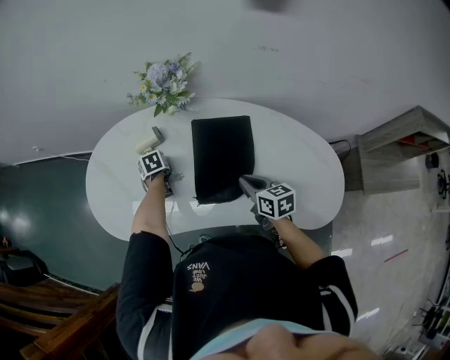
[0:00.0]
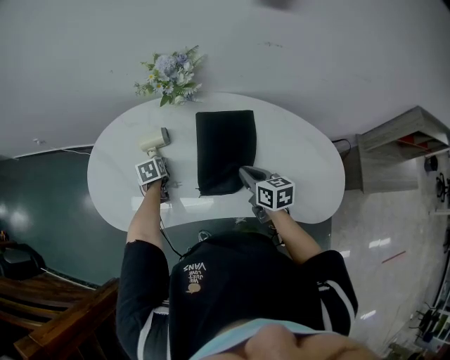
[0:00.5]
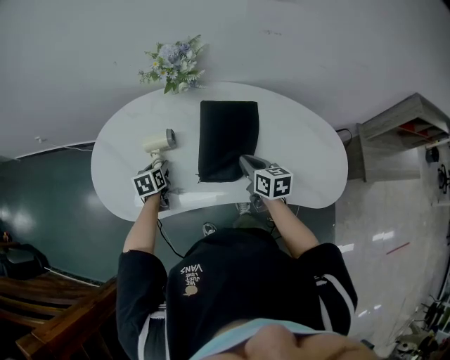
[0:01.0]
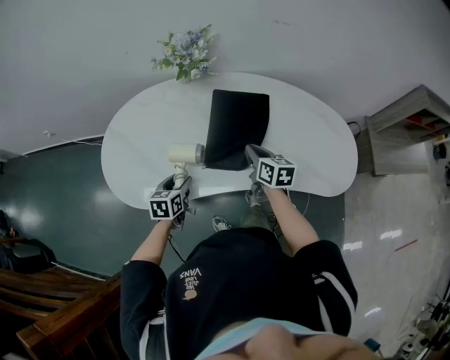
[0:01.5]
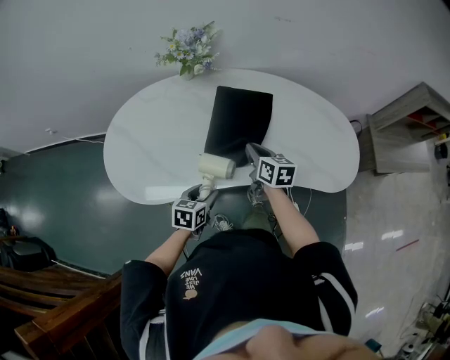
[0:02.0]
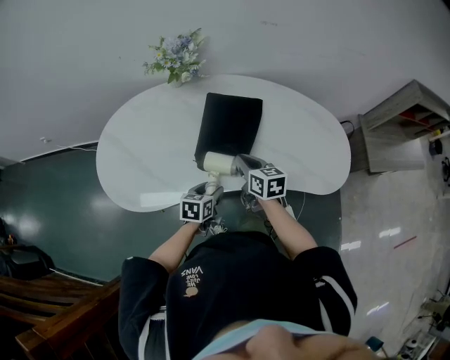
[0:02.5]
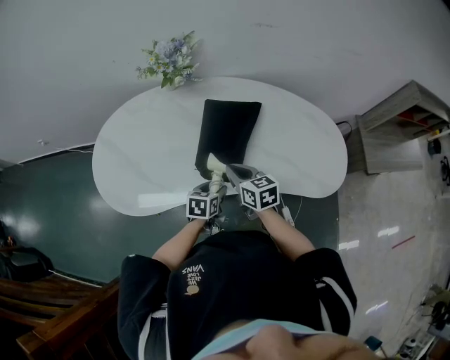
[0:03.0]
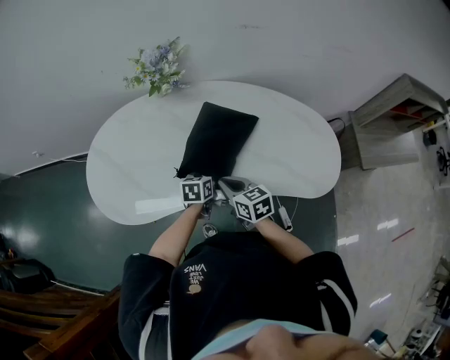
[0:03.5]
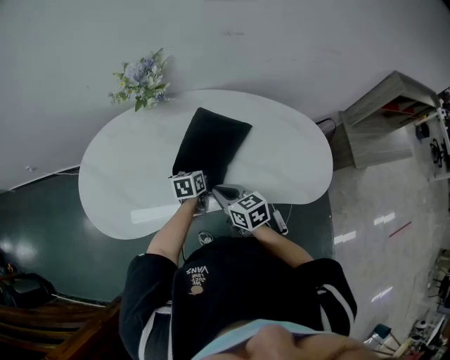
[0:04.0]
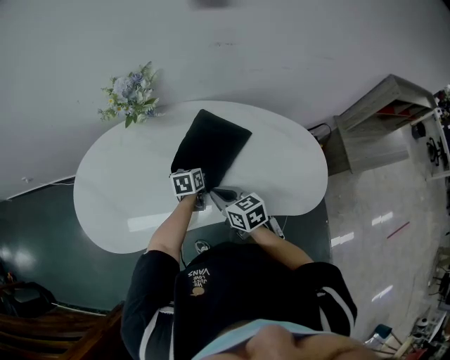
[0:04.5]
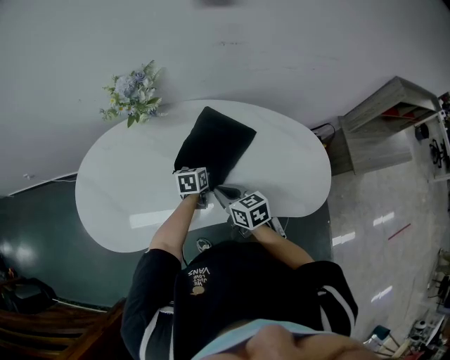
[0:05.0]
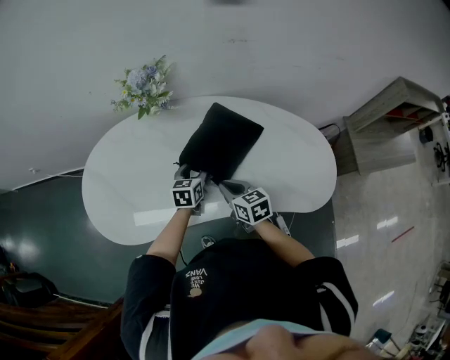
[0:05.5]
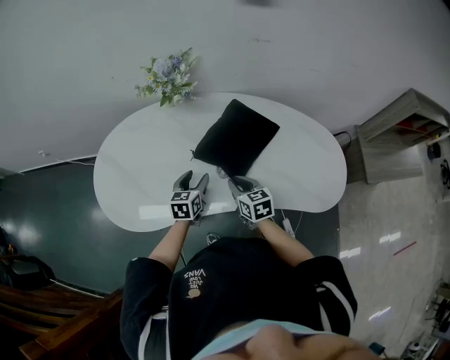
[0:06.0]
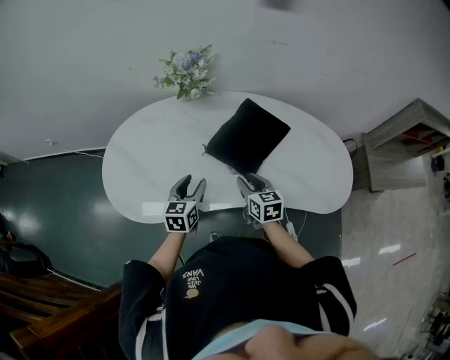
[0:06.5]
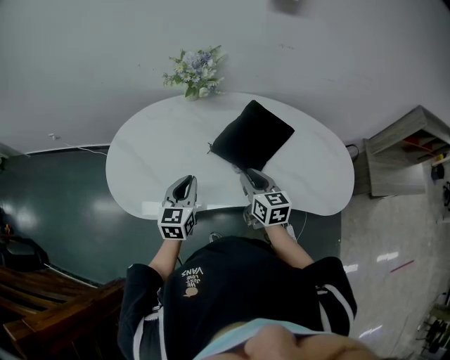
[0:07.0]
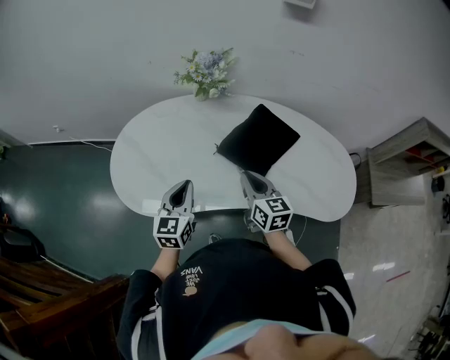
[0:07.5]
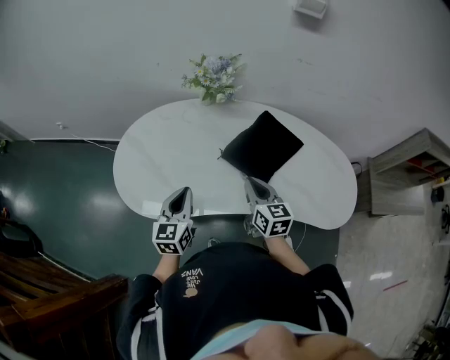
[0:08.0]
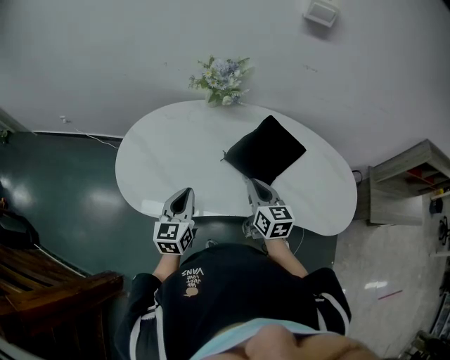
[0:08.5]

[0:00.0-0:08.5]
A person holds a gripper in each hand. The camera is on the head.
0.0 to 2.0 s: The left gripper shifts by roughly 35 cm, and rotates some 40 degrees. The right gripper ends up about 10 cm from where it was.
2.0 to 4.0 s: The left gripper is displaced forward and to the right by some 25 cm.
4.0 to 6.5 s: The left gripper shifts some 20 cm to the left, upward and backward, and rotates about 20 degrees.
6.5 to 8.5 s: The left gripper moves to the left and upward, roughly 10 cm, and closes its fingers, while the right gripper is displaced upward by some 10 cm.

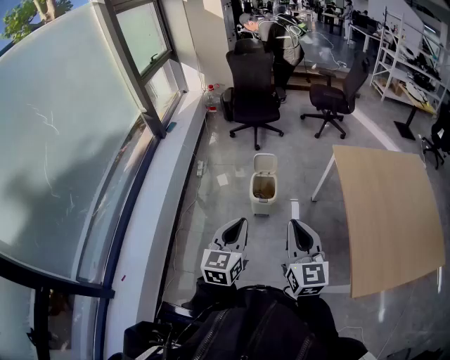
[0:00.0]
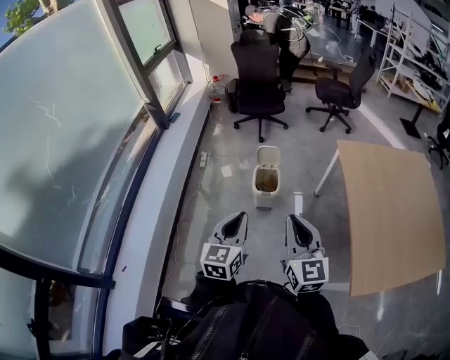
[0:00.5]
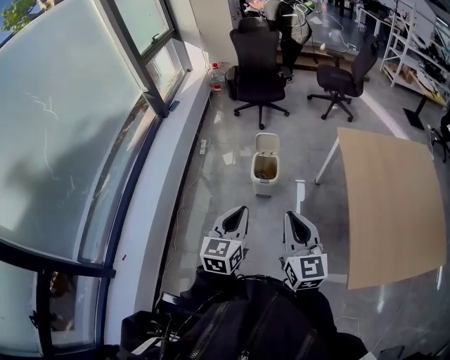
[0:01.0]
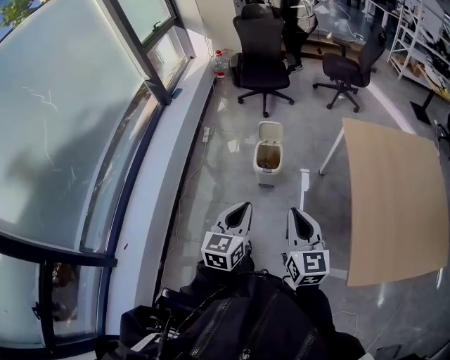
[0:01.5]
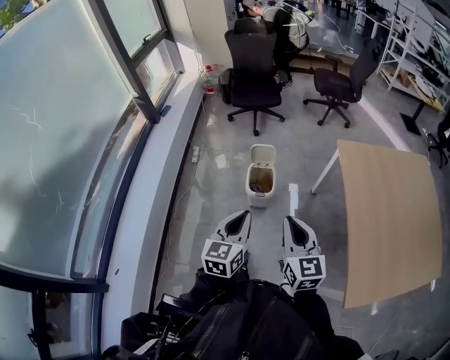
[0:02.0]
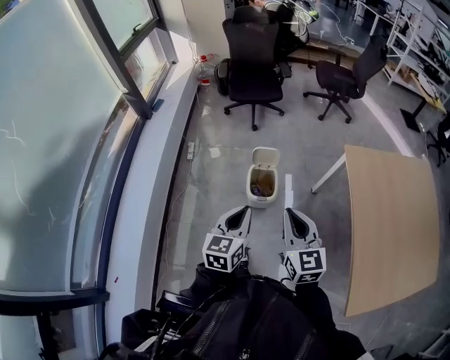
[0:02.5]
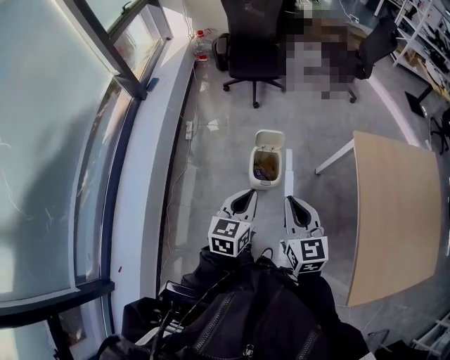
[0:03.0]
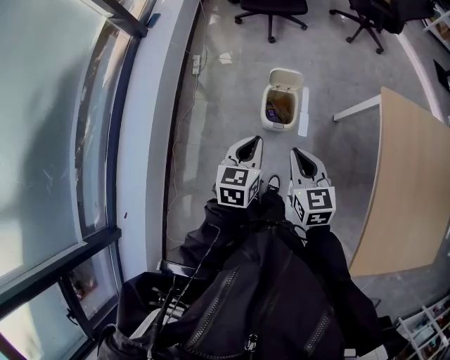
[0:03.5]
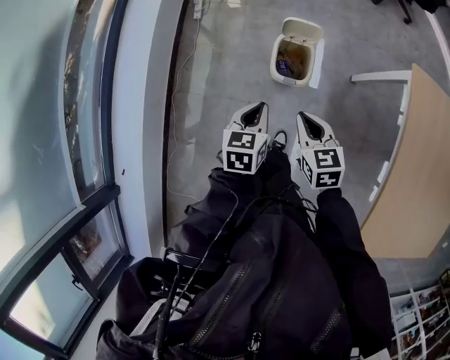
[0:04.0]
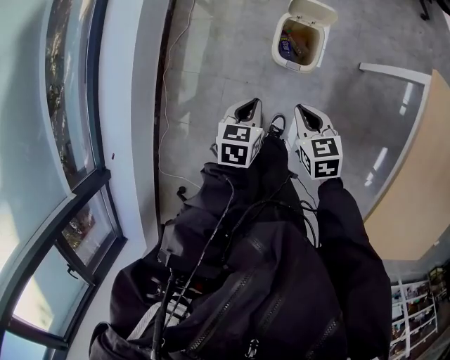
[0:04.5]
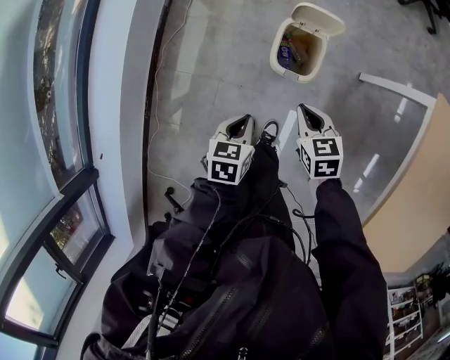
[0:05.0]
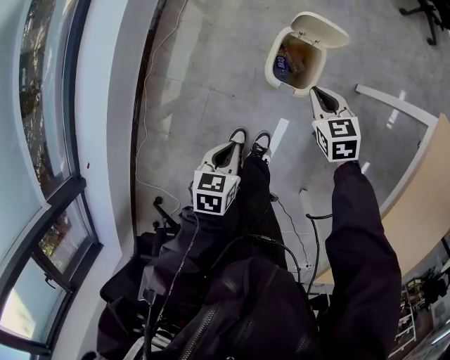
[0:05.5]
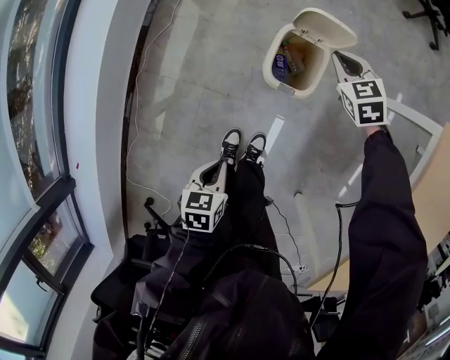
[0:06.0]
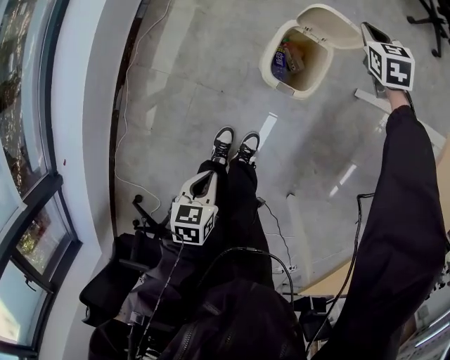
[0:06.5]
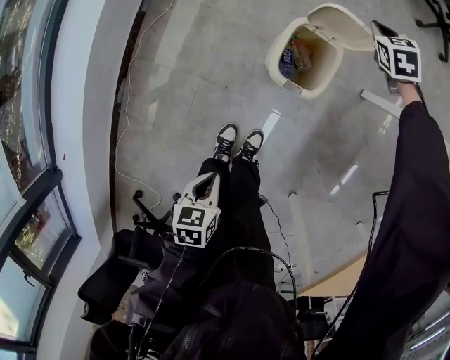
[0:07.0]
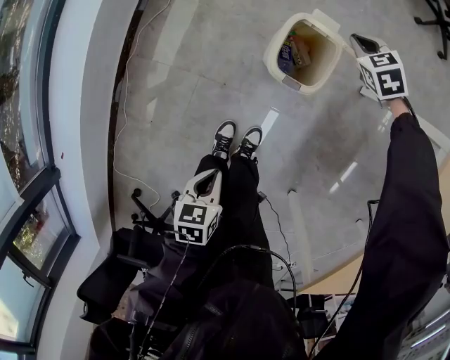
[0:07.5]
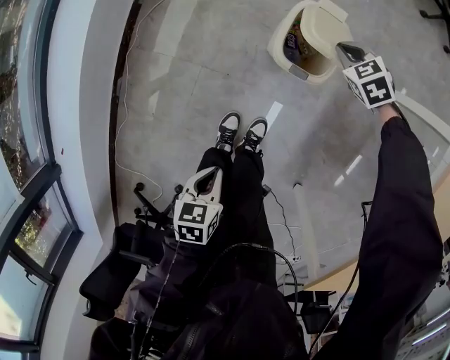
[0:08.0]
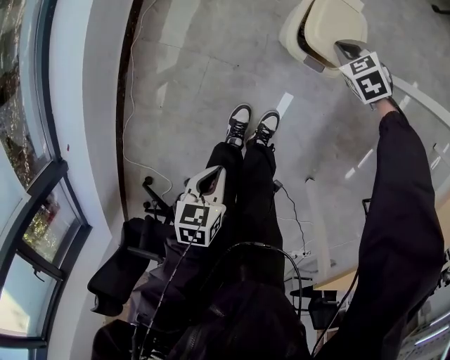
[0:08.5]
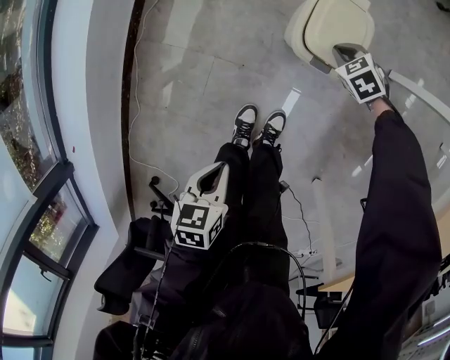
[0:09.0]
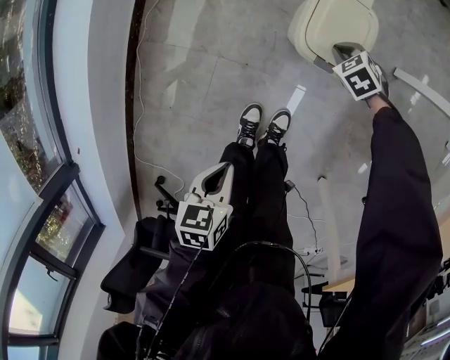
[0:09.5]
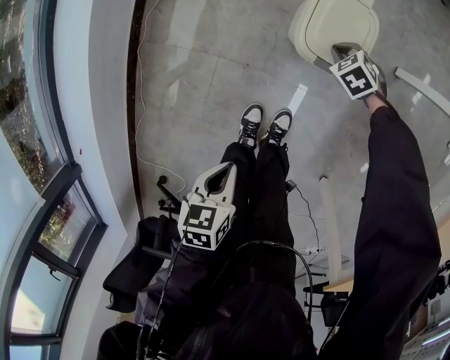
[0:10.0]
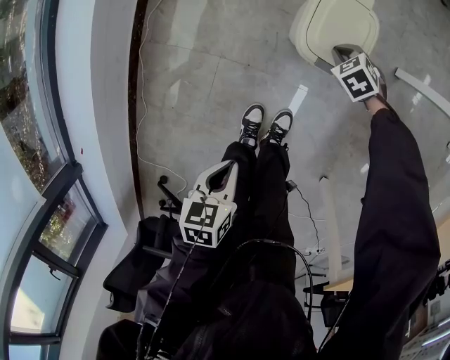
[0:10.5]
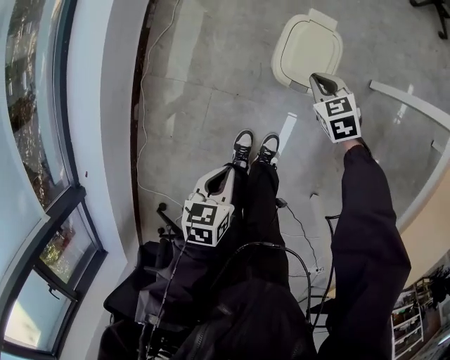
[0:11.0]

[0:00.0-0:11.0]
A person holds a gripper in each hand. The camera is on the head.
0.0 to 2.0 s: The right gripper moves forward and downward, some 10 cm; the left gripper goes about 10 cm forward.
2.0 to 3.5 s: The two grippers go approximately 25 cm forward and downward. The right gripper changes its angle by roughly 20 degrees.
3.5 to 5.5 s: The left gripper goes approximately 30 cm downward, and swivels about 30 degrees, while the right gripper moves downward and forward, approximately 35 cm, and swivels approximately 30 degrees.
5.5 to 7.5 s: The left gripper travels backward and downward by approximately 10 cm. Meanwhile the right gripper goes about 20 cm forward and downward, and turns by some 30 degrees.
7.5 to 9.0 s: The right gripper is displaced downward and backward by about 20 cm.
9.0 to 11.0 s: The right gripper shifts about 10 cm upward, and swivels roughly 20 degrees. The left gripper moves roughly 5 cm.

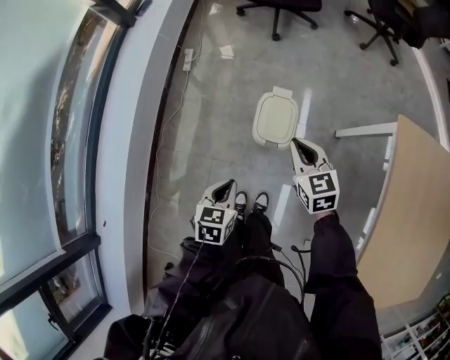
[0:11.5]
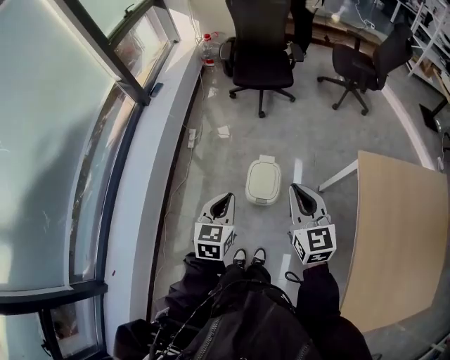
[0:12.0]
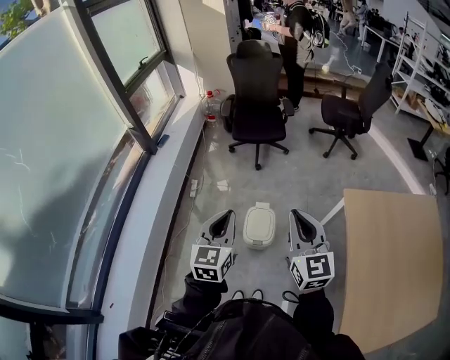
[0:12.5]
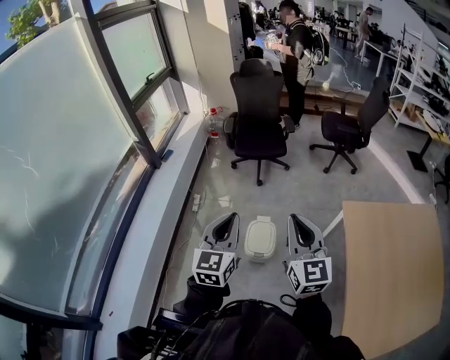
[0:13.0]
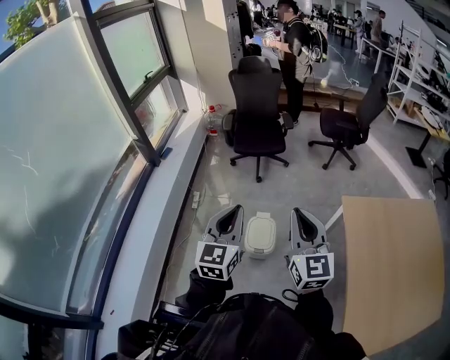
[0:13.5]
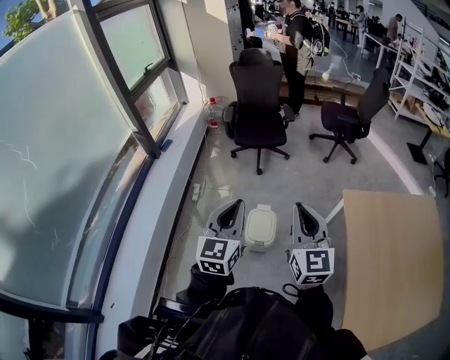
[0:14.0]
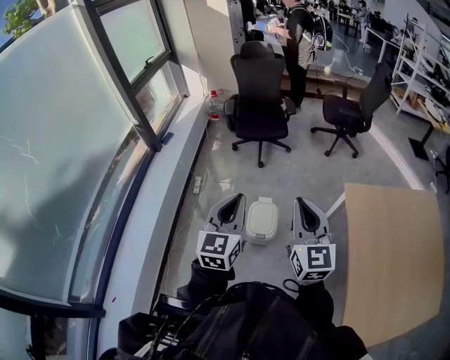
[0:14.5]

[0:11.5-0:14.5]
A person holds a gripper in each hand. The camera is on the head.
11.5 to 13.0 s: Both grippers travel together upward, some 40 cm. The left gripper tips its fingers upward by about 50 degrees; the right gripper points its fingers about 40 degrees further upward.
13.0 to 14.5 s: The grippers make only small movements.

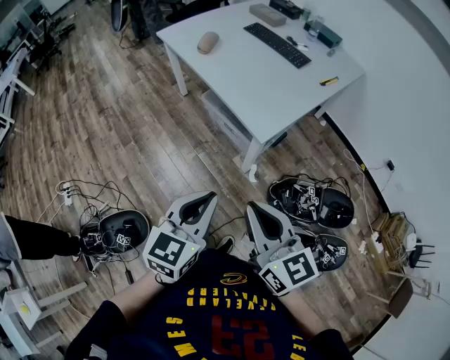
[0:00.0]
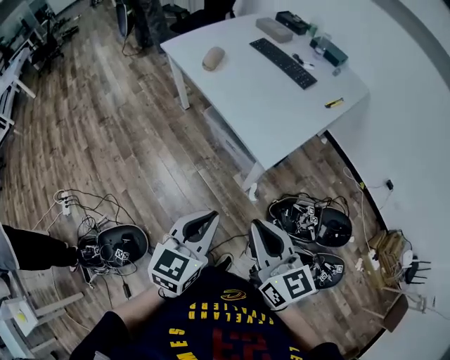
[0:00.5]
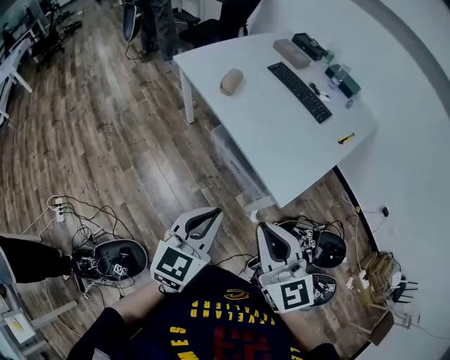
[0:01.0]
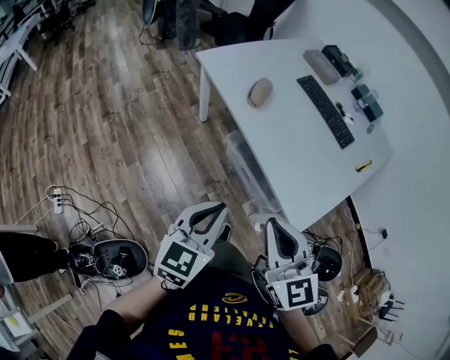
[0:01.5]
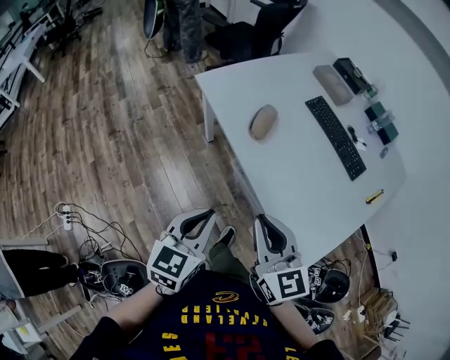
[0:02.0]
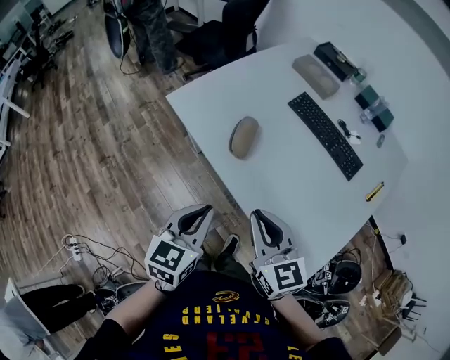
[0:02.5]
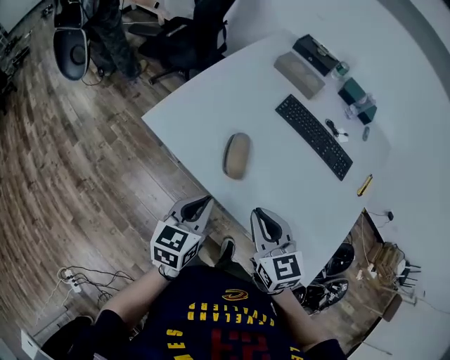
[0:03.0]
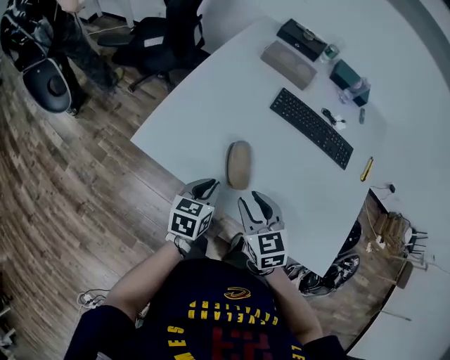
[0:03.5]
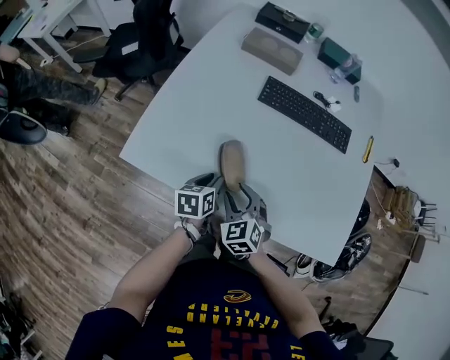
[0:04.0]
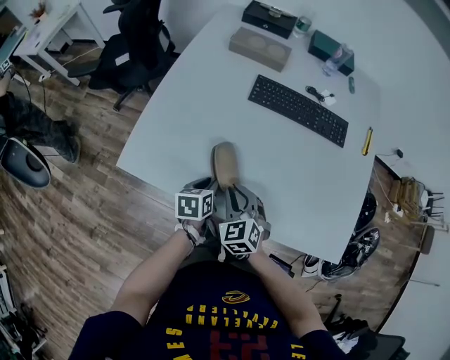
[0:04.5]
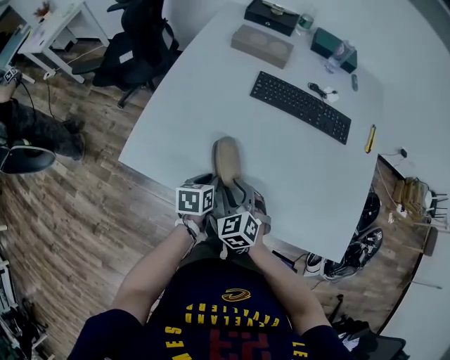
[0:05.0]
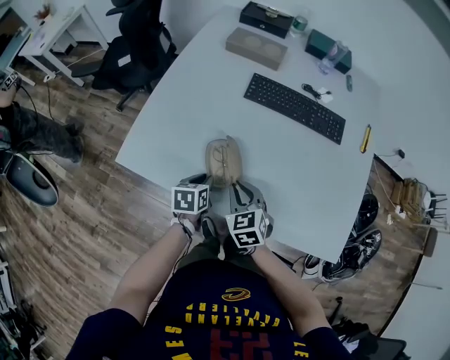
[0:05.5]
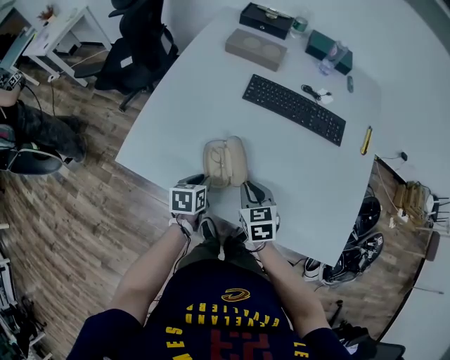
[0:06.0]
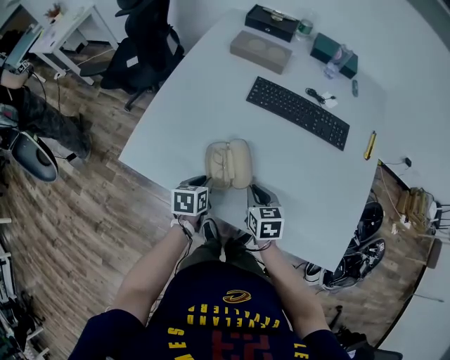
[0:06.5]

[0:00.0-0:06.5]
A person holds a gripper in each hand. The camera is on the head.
0.0 to 2.0 s: Both grippers are carried forward and to the left, some 50 cm.
2.0 to 4.5 s: The right gripper ends up about 40 cm from where it was, turns by roughly 50 degrees, and opens and closes again. The left gripper moves approximately 50 cm, and swivels about 40 degrees.
4.5 to 6.5 s: The right gripper heads to the right, covering approximately 10 cm, rotates some 30 degrees, and opens and closes again.
